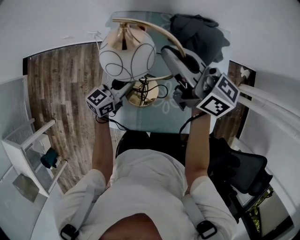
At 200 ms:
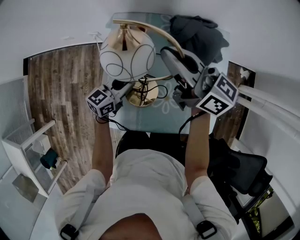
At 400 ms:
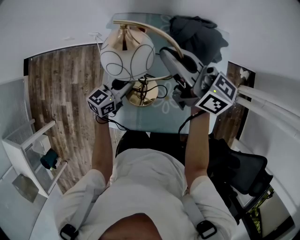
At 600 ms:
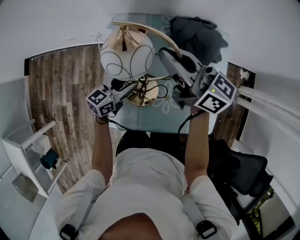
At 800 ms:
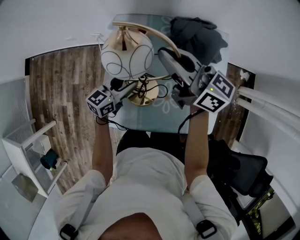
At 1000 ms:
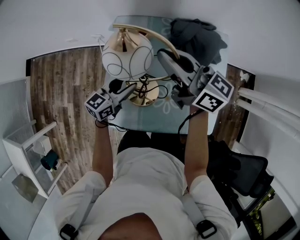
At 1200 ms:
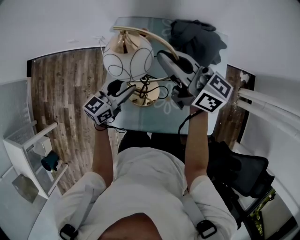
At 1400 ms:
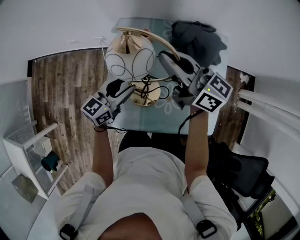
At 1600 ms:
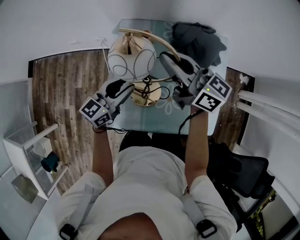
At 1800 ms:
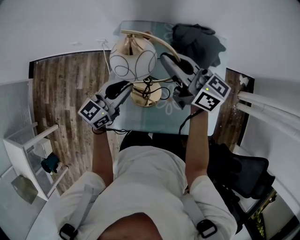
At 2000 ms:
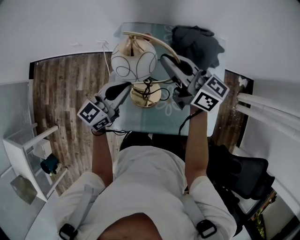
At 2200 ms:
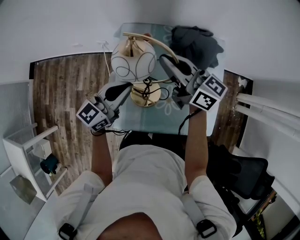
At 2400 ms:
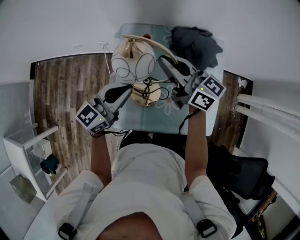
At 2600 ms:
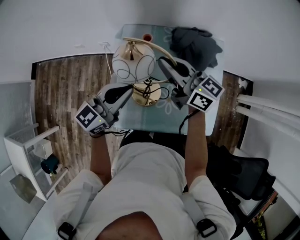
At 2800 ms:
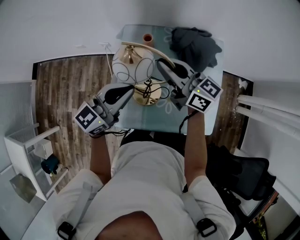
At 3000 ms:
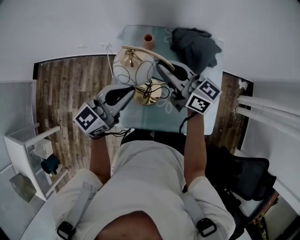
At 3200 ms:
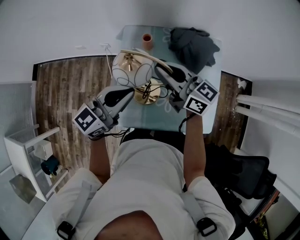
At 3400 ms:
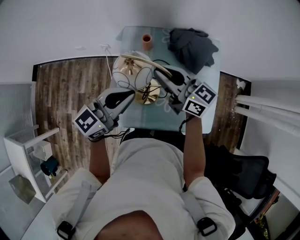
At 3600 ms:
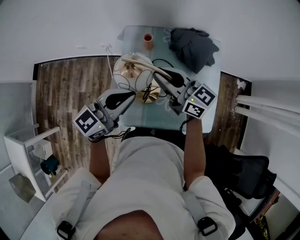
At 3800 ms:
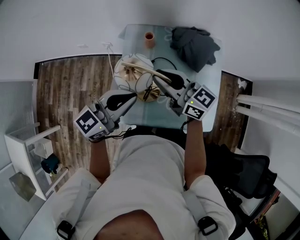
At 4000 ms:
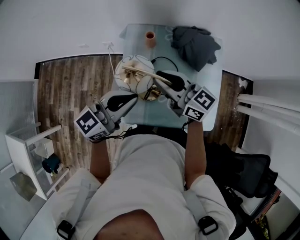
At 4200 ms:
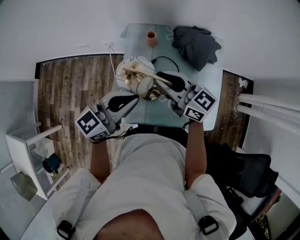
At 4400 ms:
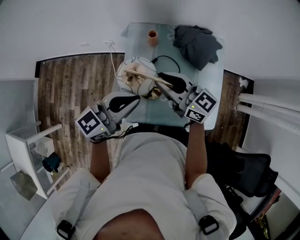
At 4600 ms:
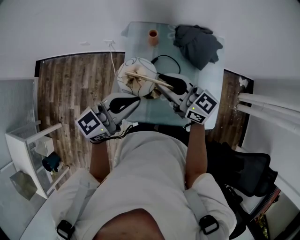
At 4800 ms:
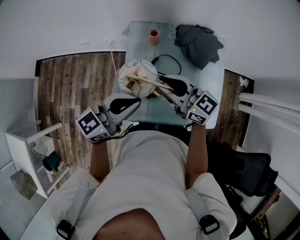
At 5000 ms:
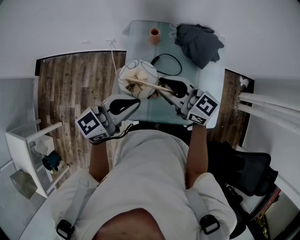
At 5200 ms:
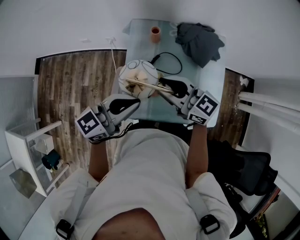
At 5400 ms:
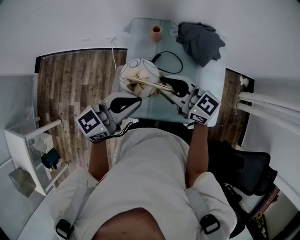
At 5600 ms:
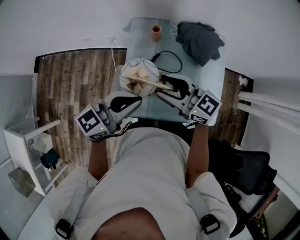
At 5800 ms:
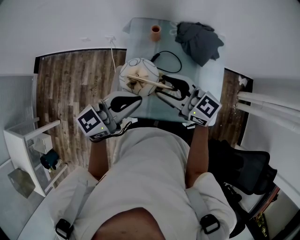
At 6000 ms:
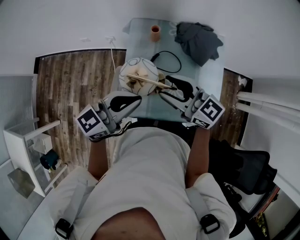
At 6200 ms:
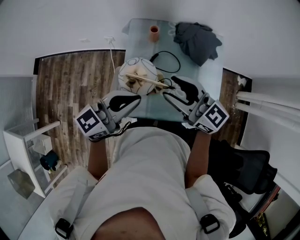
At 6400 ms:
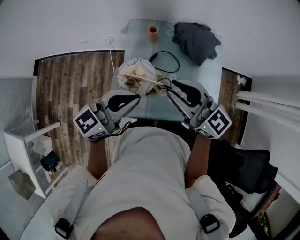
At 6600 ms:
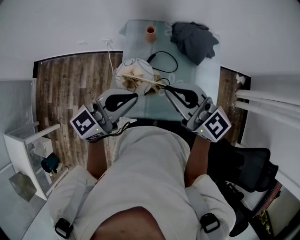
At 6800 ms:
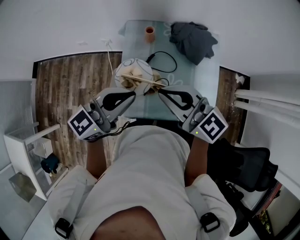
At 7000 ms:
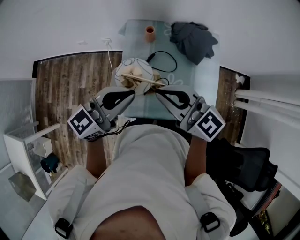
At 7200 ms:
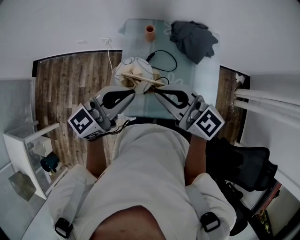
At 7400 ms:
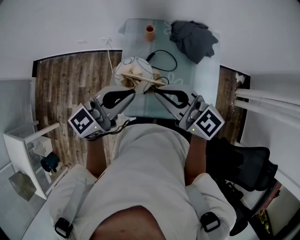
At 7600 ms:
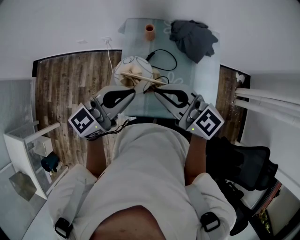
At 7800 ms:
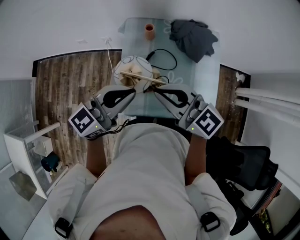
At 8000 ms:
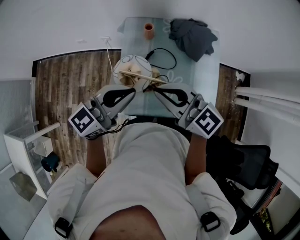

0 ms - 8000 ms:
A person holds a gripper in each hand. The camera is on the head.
0 ms - 1600 ms: The left gripper shifts some 10 cm upward, and opens up.
1600 ms - 3200 ms: The left gripper is displaced upward and backward by about 15 cm, and closes up. Meanwhile the right gripper heads backward, covering about 5 cm.
3200 ms - 4800 ms: The two grippers go about 5 cm backward.
4800 ms - 6400 ms: The right gripper goes approximately 5 cm upward, and opens, then closes once more.
6400 ms - 8000 ms: The right gripper closes.

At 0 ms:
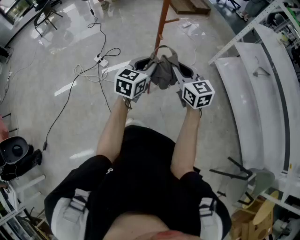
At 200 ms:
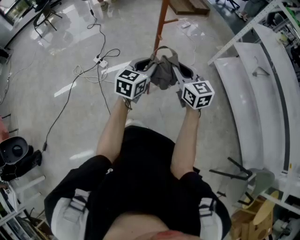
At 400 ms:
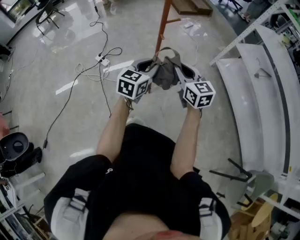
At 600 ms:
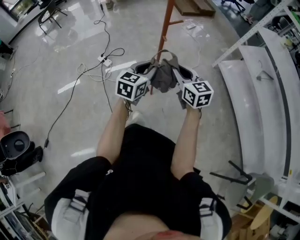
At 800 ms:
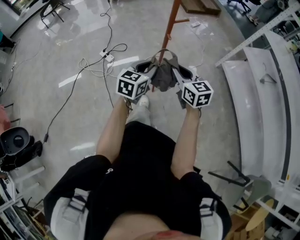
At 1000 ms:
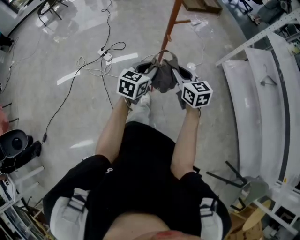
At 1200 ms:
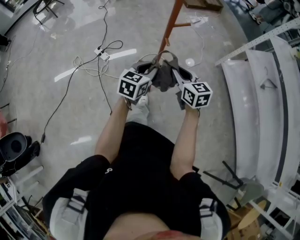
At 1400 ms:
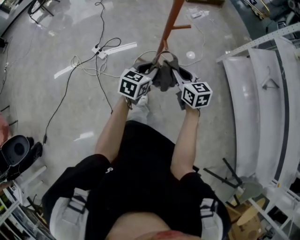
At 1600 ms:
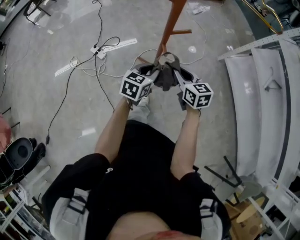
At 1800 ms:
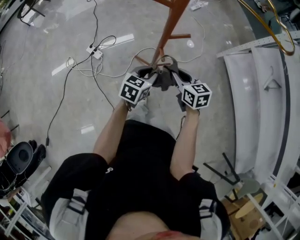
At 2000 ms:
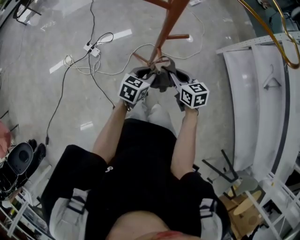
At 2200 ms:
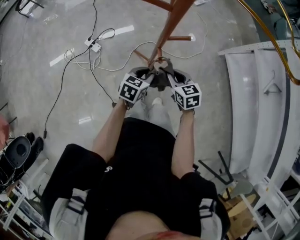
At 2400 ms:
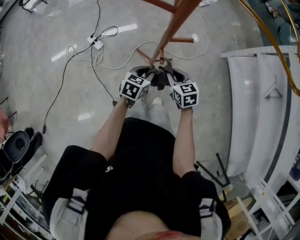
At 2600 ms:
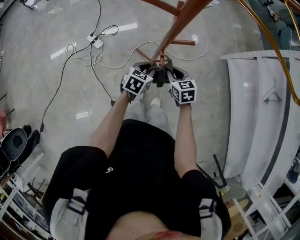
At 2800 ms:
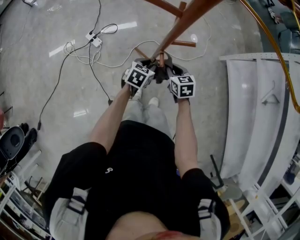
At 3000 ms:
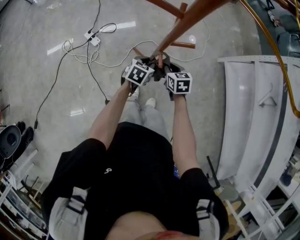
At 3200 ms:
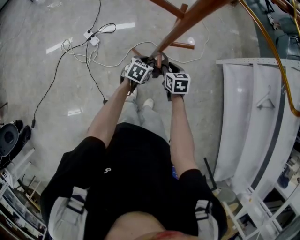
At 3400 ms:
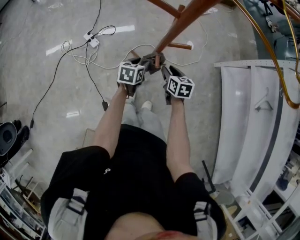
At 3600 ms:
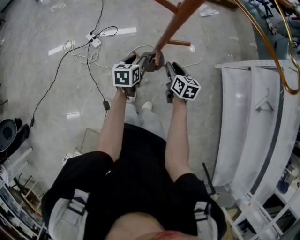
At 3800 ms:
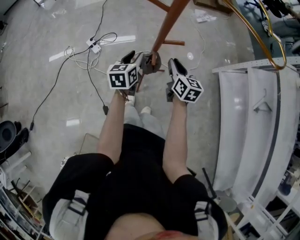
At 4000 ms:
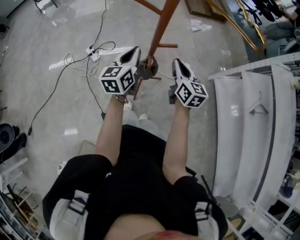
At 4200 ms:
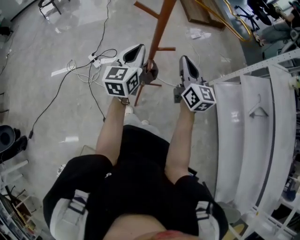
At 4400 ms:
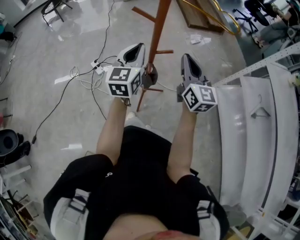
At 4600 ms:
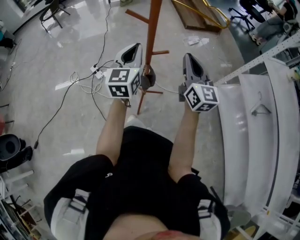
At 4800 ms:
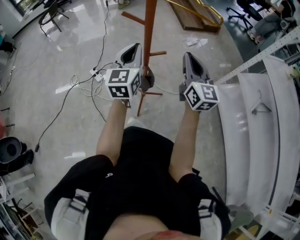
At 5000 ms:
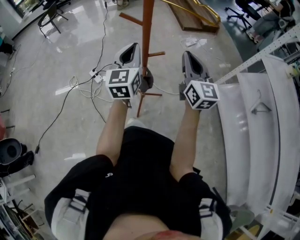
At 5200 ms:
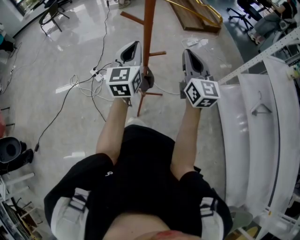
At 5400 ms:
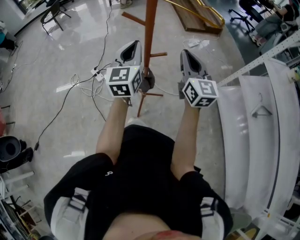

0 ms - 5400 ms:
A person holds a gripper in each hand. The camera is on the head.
0 ms - 1400 ms: The two grippers go approximately 20 cm forward and downward.
1400 ms - 2800 ms: Both grippers travel together downward and forward, approximately 20 cm.
2800 ms - 4000 ms: Both grippers move upward, some 20 cm. The right gripper points its fingers approximately 30 degrees further upward, and opens and closes again. The left gripper points its fingers about 40 degrees further upward.
4000 ms - 5400 ms: Both grippers move upward, roughly 15 cm. The right gripper rotates approximately 20 degrees, while the left gripper turns by roughly 20 degrees.

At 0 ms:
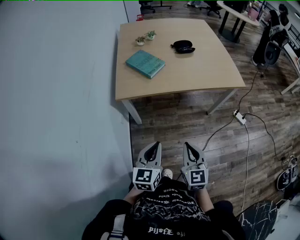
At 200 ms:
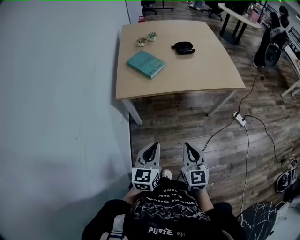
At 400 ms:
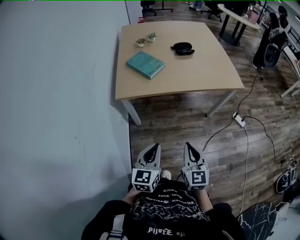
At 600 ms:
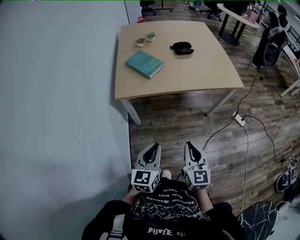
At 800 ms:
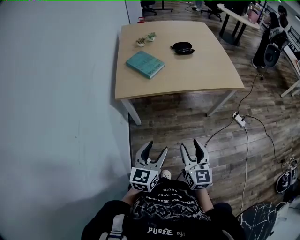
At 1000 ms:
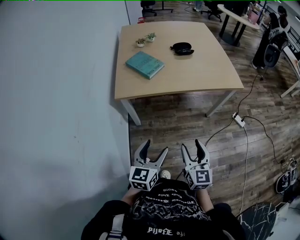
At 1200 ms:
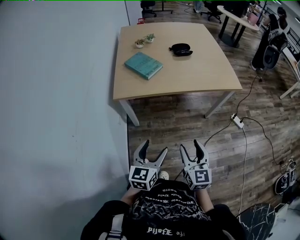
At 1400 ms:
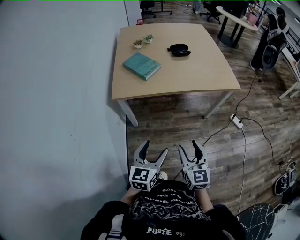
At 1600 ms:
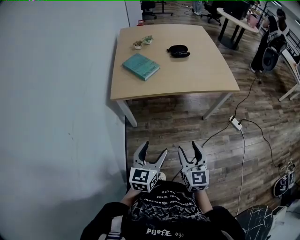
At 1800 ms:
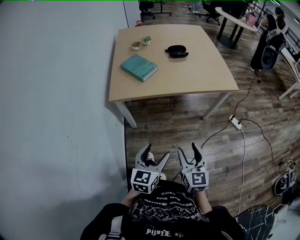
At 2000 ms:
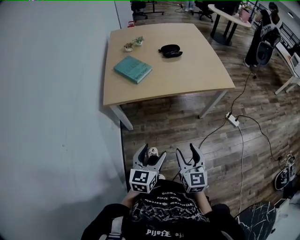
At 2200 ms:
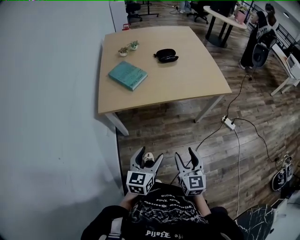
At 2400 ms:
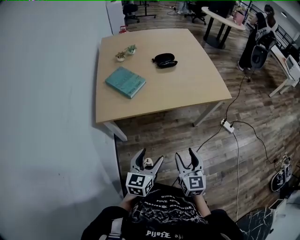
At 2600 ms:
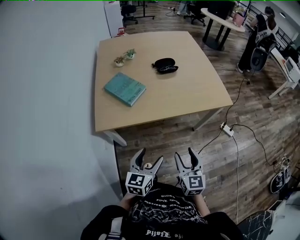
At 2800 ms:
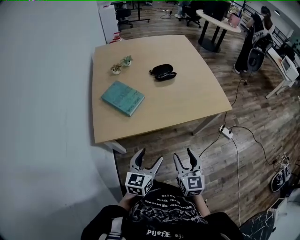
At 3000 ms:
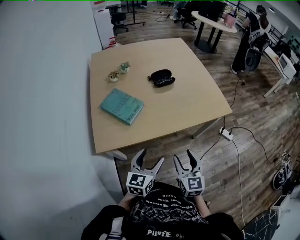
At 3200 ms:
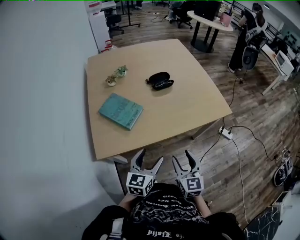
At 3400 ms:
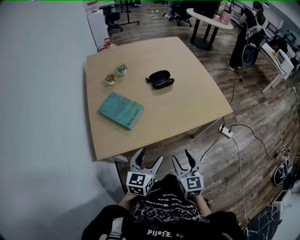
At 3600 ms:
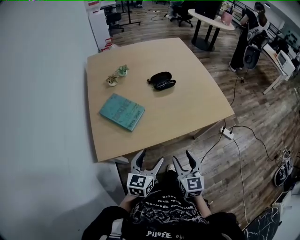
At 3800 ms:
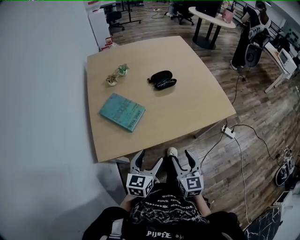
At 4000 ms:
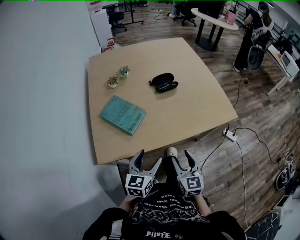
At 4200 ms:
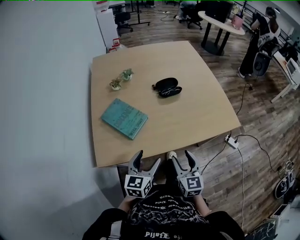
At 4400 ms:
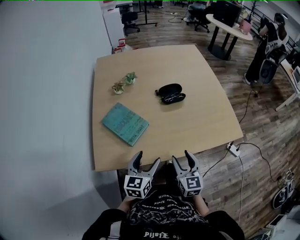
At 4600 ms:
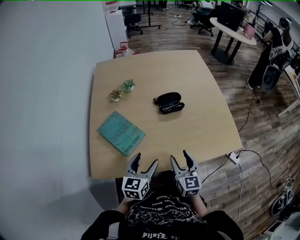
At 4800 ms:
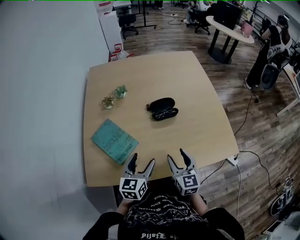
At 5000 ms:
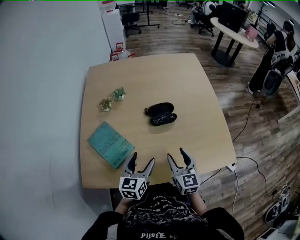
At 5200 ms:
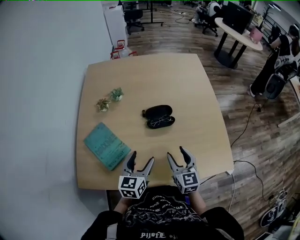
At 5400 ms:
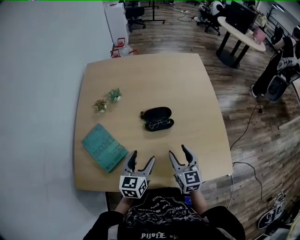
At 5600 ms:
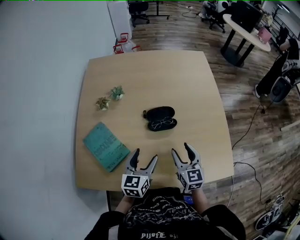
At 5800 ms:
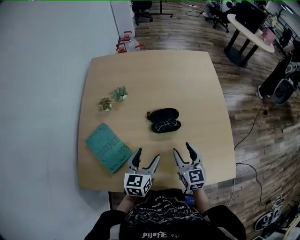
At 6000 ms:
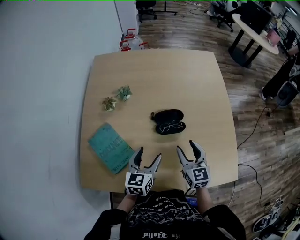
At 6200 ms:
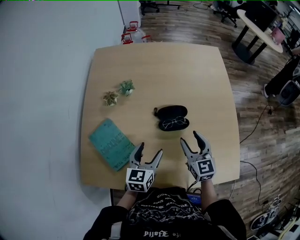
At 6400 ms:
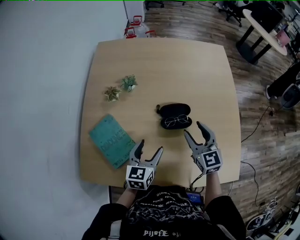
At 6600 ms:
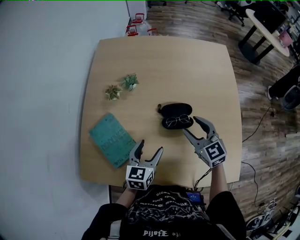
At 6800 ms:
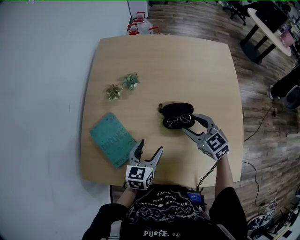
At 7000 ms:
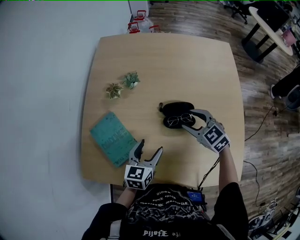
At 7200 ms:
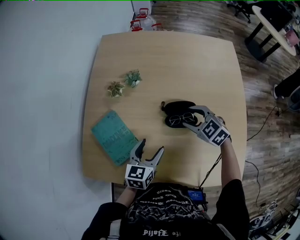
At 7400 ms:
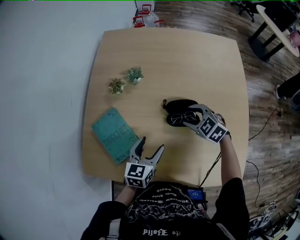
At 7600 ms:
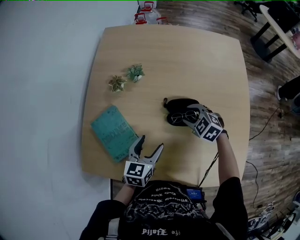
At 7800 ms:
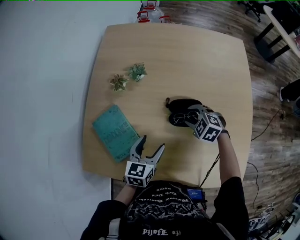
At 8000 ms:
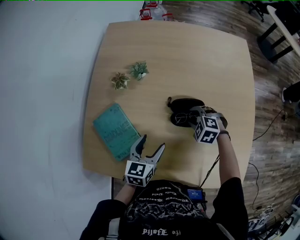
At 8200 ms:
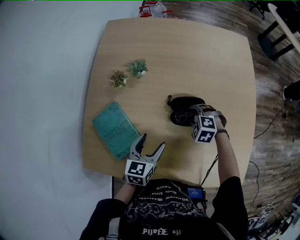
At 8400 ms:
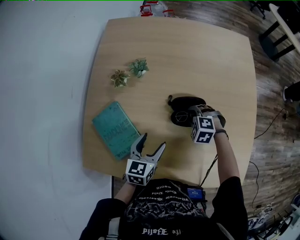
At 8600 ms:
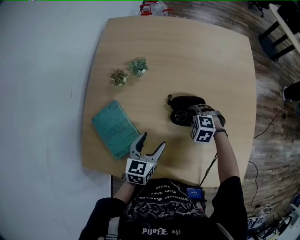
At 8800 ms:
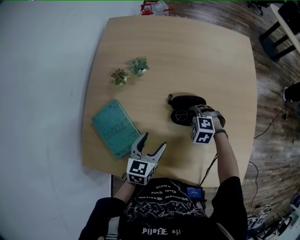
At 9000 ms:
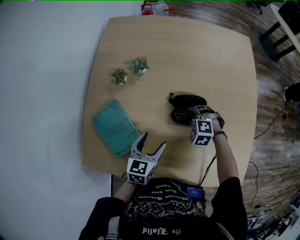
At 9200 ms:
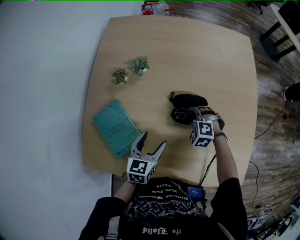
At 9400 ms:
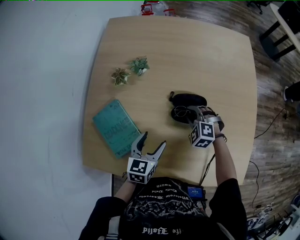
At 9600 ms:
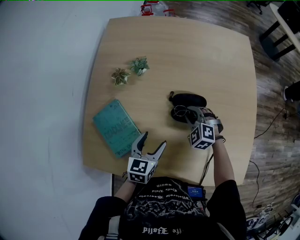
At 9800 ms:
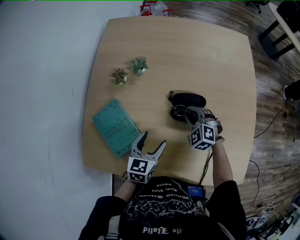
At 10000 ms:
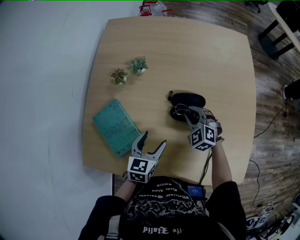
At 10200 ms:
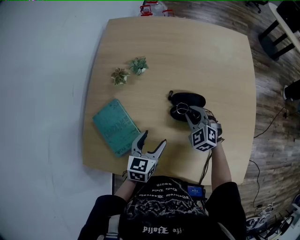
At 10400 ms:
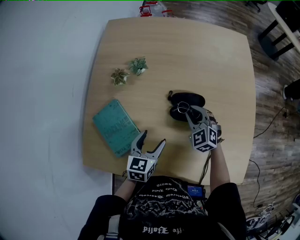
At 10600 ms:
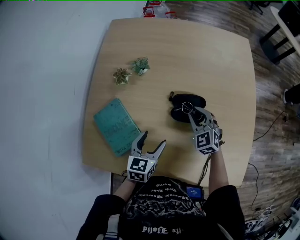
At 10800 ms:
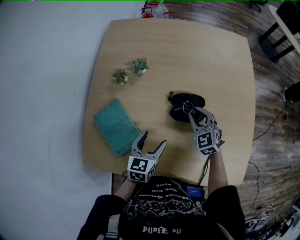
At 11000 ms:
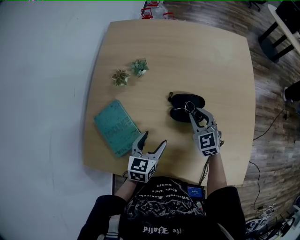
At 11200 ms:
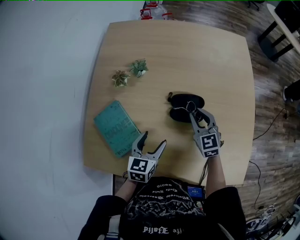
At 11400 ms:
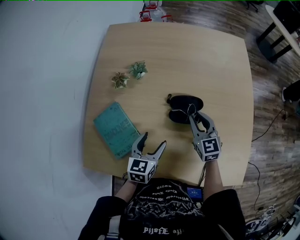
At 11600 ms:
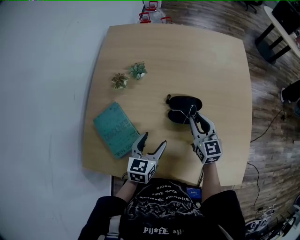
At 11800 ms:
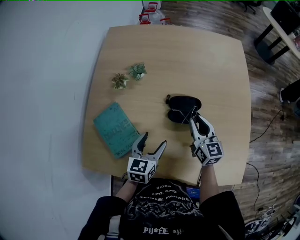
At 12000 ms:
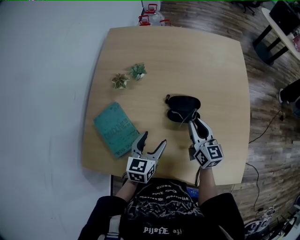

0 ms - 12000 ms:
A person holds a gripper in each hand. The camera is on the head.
0 ms - 1600 ms: The grippers both shift to the right by about 5 cm. The left gripper opens its fingers. The right gripper opens.
1600 ms - 3000 ms: Both grippers move forward, about 25 cm.
3000 ms - 4400 ms: Both grippers move forward, about 15 cm.
4400 ms - 6000 ms: The two grippers go roughly 25 cm forward.
6000 ms - 7600 ms: The left gripper ends up roughly 5 cm from where it was. The right gripper goes about 15 cm forward and downward, and tips its fingers downward by approximately 30 degrees.
7600 ms - 9000 ms: The right gripper goes roughly 5 cm downward, swivels roughly 30 degrees, and closes its fingers.
9000 ms - 10400 ms: The right gripper goes some 5 cm upward, and rotates about 40 degrees.
10400 ms - 12000 ms: The right gripper heads upward and backward, covering approximately 10 cm, and twists some 50 degrees clockwise, seen from behind.
